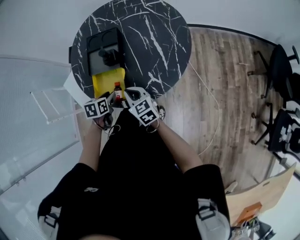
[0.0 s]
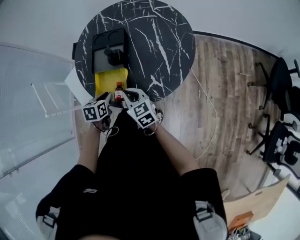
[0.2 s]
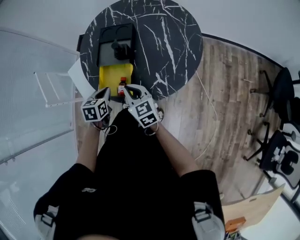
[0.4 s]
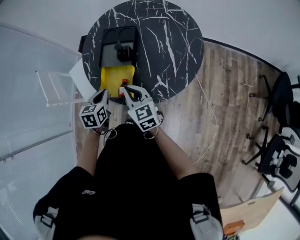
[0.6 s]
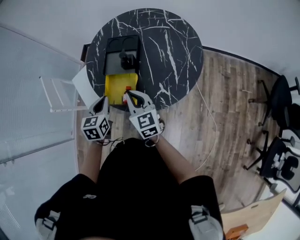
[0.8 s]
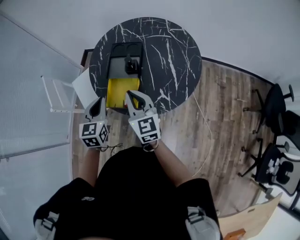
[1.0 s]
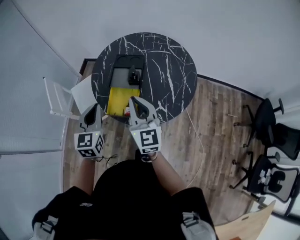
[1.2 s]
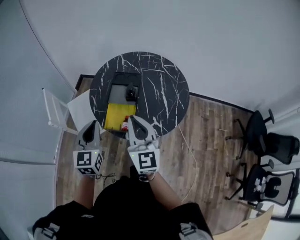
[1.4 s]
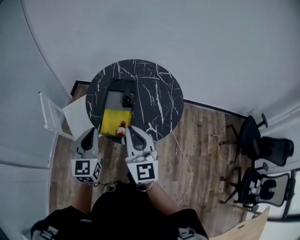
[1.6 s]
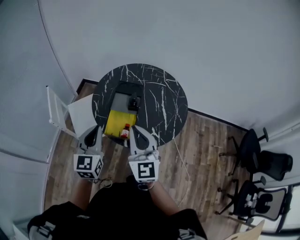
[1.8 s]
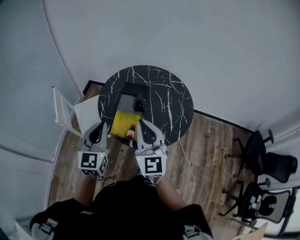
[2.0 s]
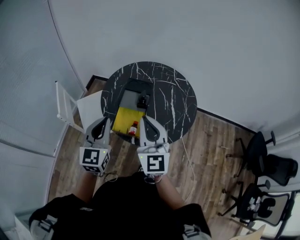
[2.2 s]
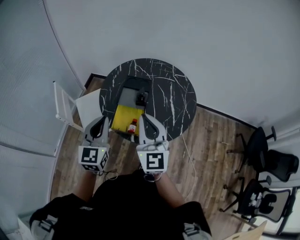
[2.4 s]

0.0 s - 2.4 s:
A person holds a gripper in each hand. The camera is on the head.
0.0 s - 1.2 s: Both grippers travel together upward, some 25 cm. The right gripper swivels about 30 degrees. Meanwhile the left gripper angles its fingers upward, by roughly 40 degrees, and closes.
1.2 s - 2.4 s: Both grippers move upward, roughly 10 cm.

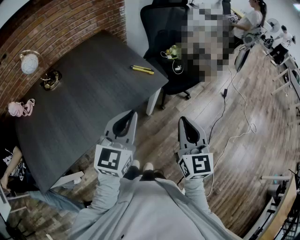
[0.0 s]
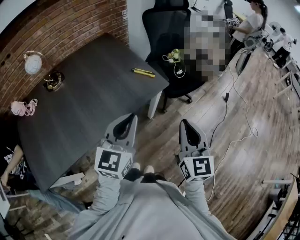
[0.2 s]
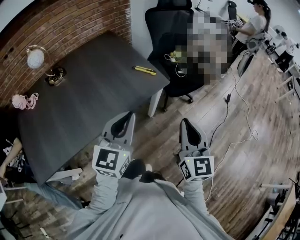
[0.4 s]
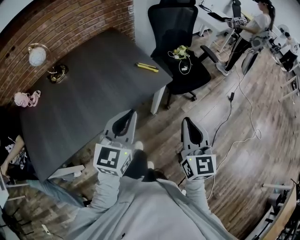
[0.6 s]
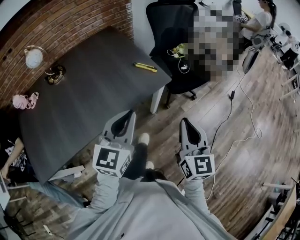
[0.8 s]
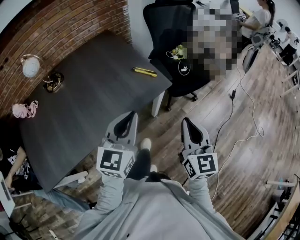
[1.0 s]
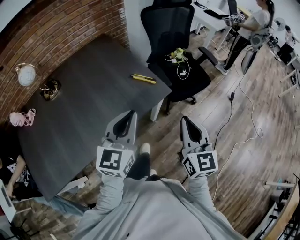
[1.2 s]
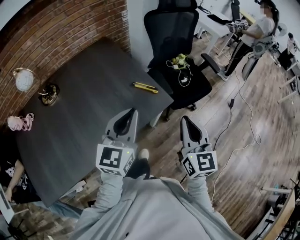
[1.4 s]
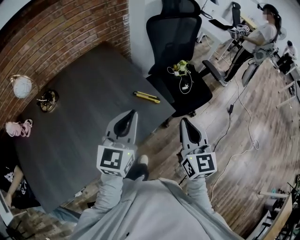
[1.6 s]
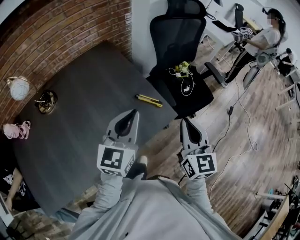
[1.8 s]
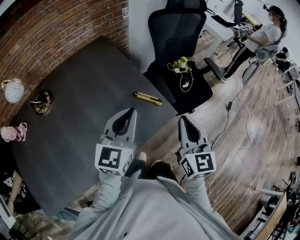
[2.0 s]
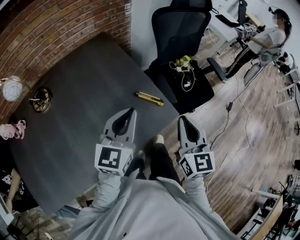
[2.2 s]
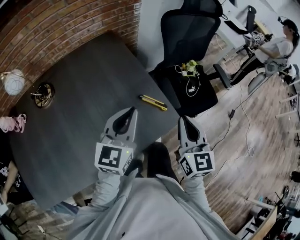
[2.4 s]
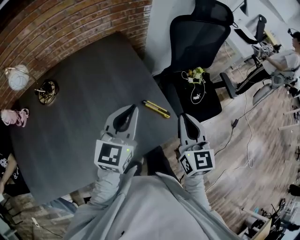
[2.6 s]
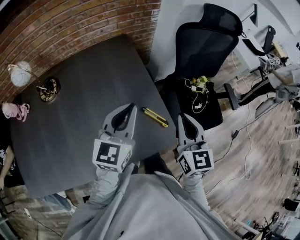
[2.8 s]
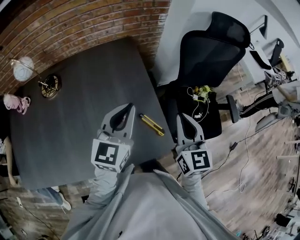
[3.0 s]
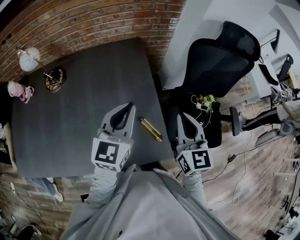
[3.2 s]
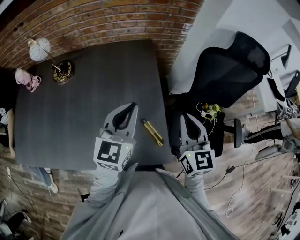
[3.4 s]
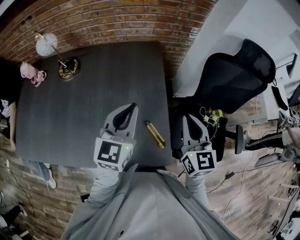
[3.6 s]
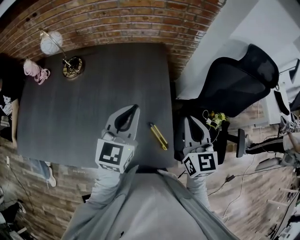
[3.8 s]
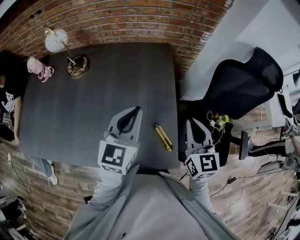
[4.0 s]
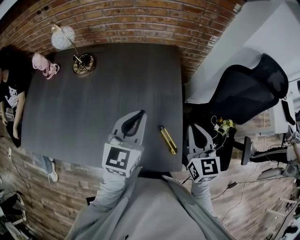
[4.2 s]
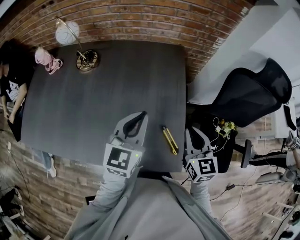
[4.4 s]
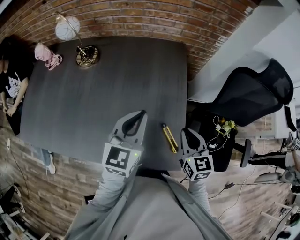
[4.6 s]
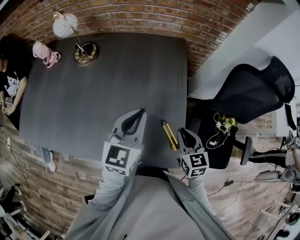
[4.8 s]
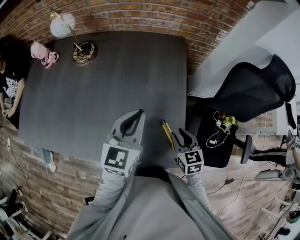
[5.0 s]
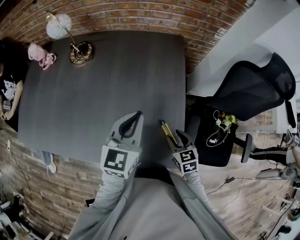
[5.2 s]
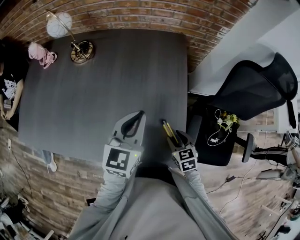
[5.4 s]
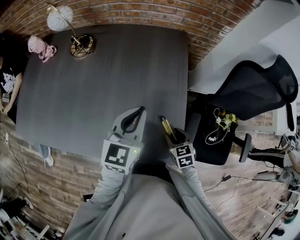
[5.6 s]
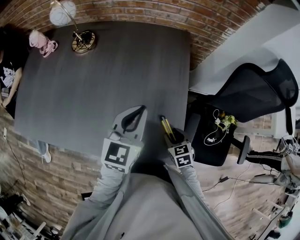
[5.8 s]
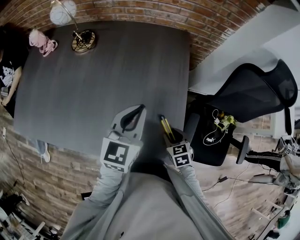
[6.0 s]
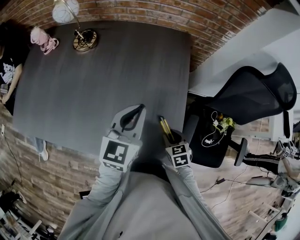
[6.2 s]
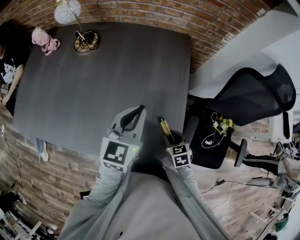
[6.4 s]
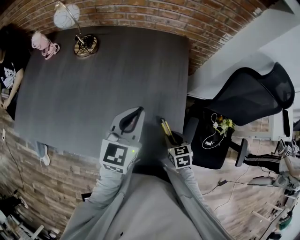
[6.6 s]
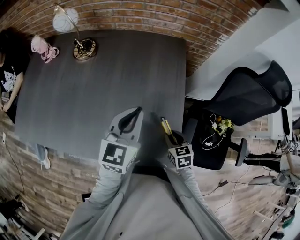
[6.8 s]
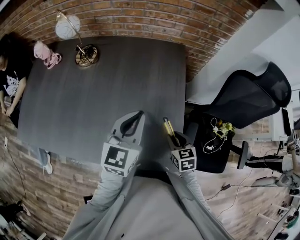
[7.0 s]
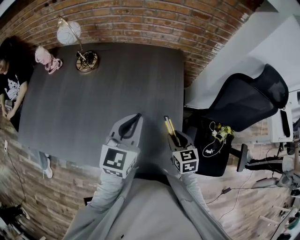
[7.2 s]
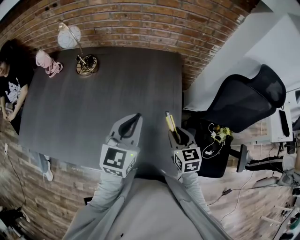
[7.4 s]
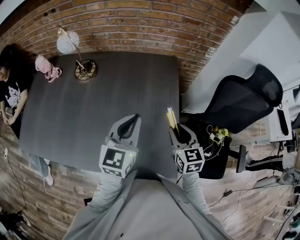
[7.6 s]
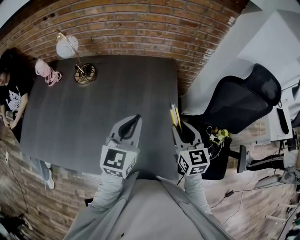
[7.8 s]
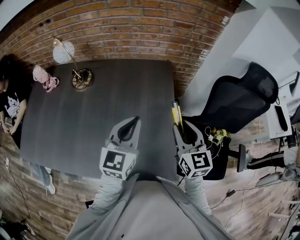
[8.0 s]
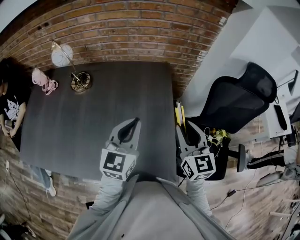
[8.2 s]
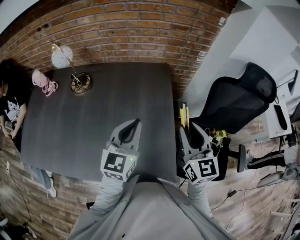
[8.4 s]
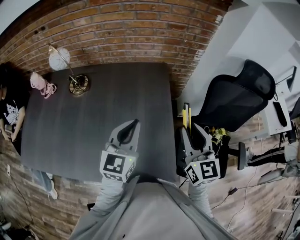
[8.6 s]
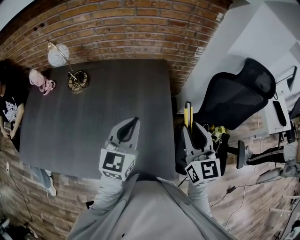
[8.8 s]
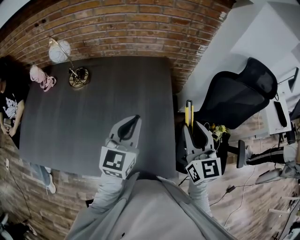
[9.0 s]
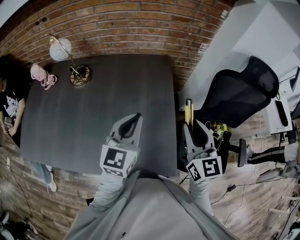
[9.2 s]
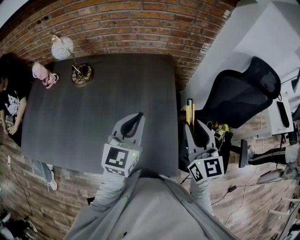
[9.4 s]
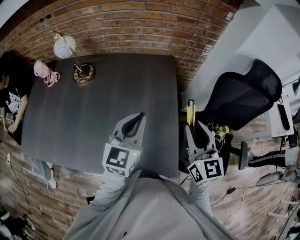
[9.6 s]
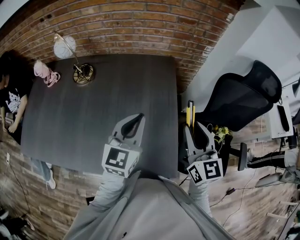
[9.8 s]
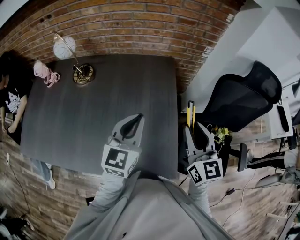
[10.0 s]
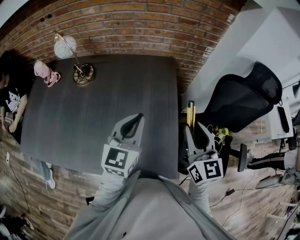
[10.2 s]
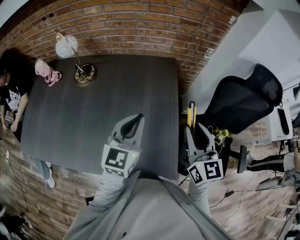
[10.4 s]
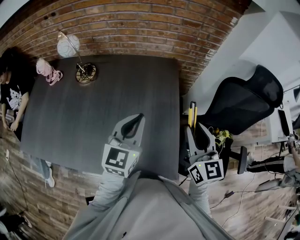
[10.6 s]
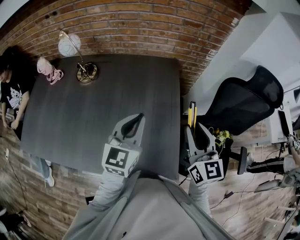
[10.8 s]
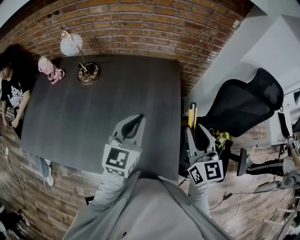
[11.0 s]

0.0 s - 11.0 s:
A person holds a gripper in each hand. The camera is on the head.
0.0 s - 1.6 s: The grippers both shift forward by approximately 20 cm.
1.6 s - 3.2 s: The left gripper shifts by about 20 cm, and changes its angle by roughly 20 degrees. The right gripper ends up approximately 30 cm from where it was, and swivels approximately 30 degrees.
3.2 s - 4.8 s: The right gripper goes roughly 15 cm downward, and swivels some 30 degrees. The left gripper is displaced to the left by approximately 5 cm.
4.8 s - 6.2 s: The right gripper heads downward, covering roughly 15 cm, swivels some 20 degrees, and opens.
6.2 s - 7.8 s: The left gripper moves upward, roughly 5 cm. Meanwhile the right gripper goes roughly 25 cm upward, and points its fingers some 40 degrees further upward.
7.8 s - 9.4 s: The right gripper goes about 10 cm upward.
9.4 s - 11.0 s: There are only small adjustments of the grippers.

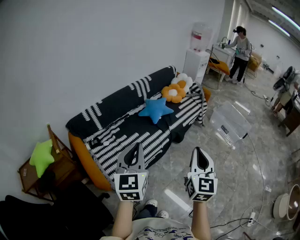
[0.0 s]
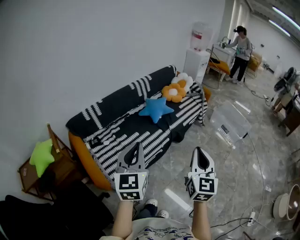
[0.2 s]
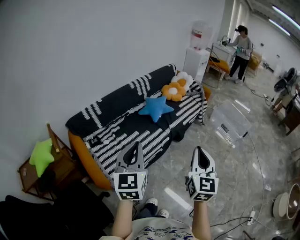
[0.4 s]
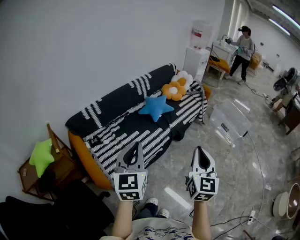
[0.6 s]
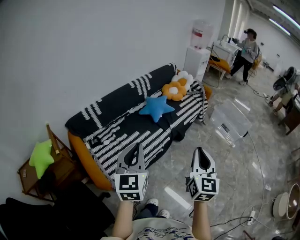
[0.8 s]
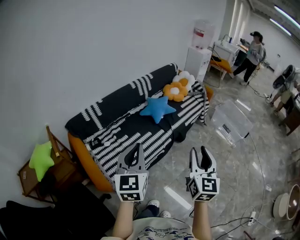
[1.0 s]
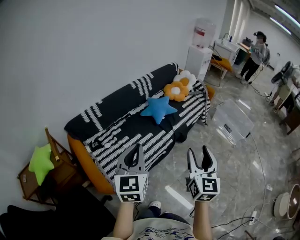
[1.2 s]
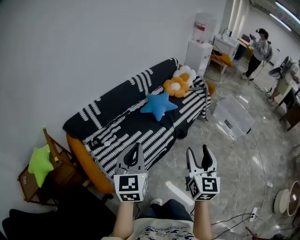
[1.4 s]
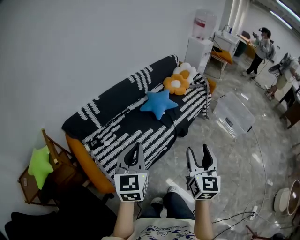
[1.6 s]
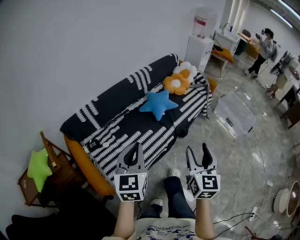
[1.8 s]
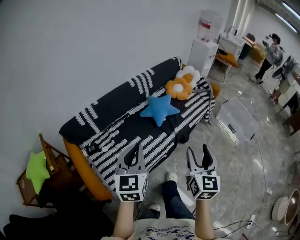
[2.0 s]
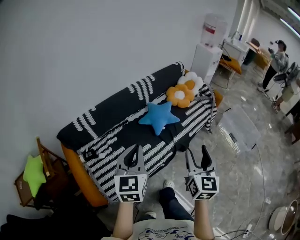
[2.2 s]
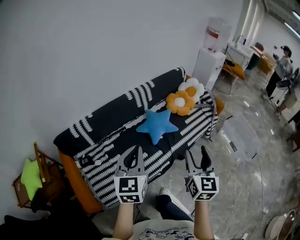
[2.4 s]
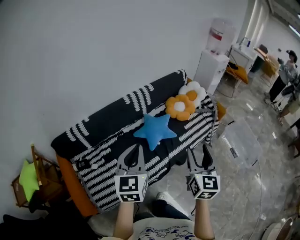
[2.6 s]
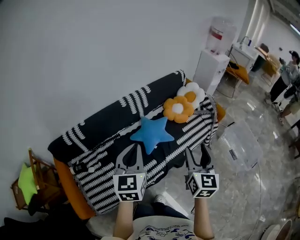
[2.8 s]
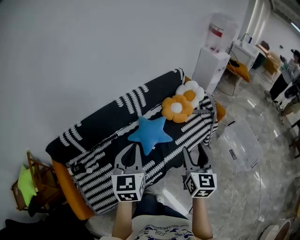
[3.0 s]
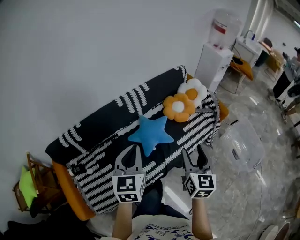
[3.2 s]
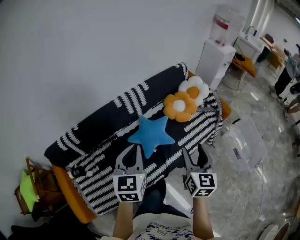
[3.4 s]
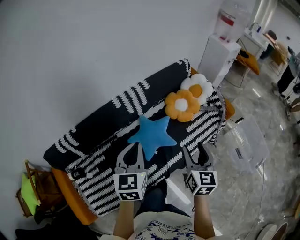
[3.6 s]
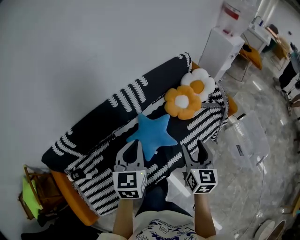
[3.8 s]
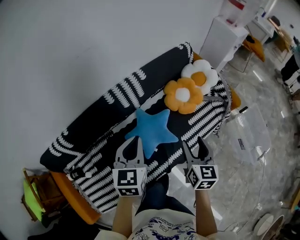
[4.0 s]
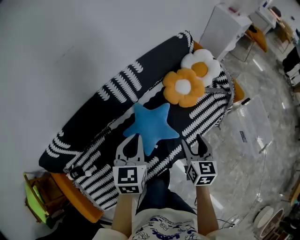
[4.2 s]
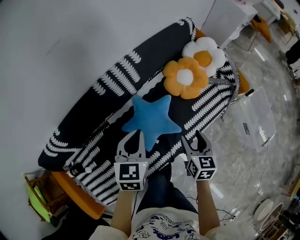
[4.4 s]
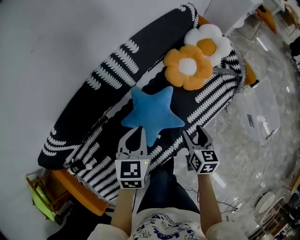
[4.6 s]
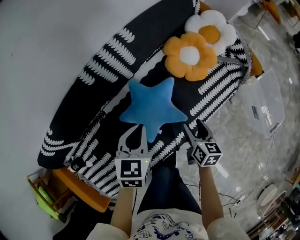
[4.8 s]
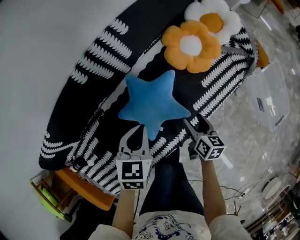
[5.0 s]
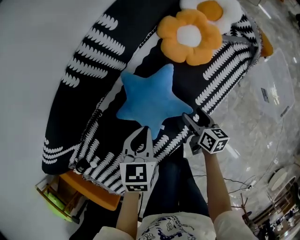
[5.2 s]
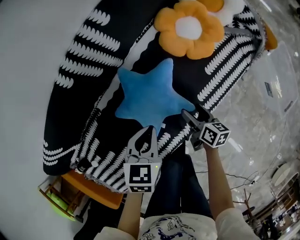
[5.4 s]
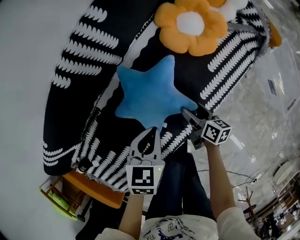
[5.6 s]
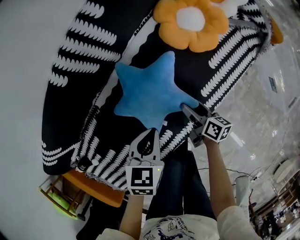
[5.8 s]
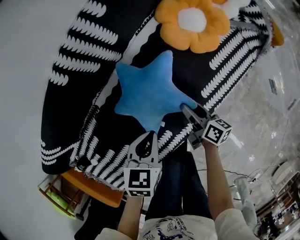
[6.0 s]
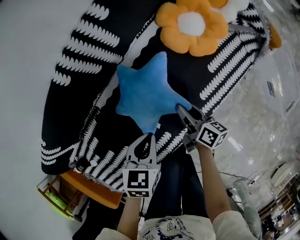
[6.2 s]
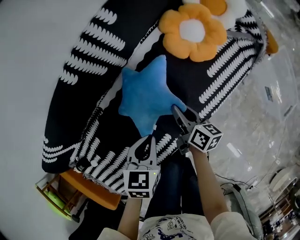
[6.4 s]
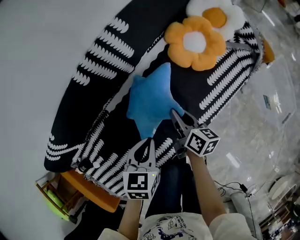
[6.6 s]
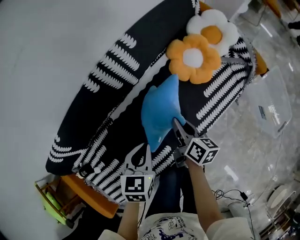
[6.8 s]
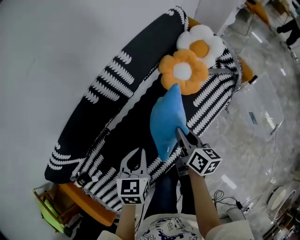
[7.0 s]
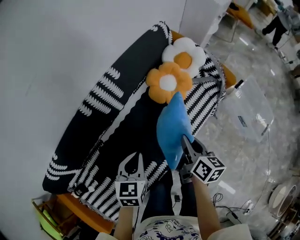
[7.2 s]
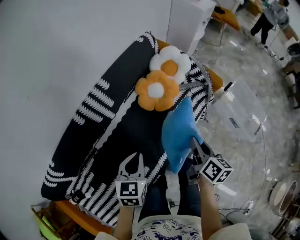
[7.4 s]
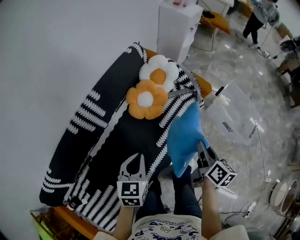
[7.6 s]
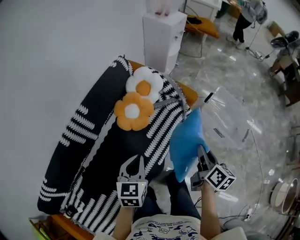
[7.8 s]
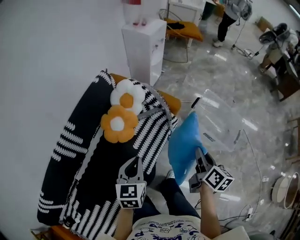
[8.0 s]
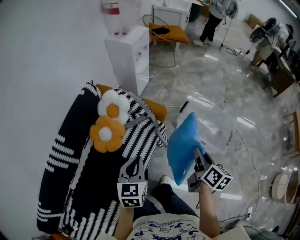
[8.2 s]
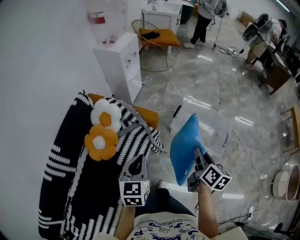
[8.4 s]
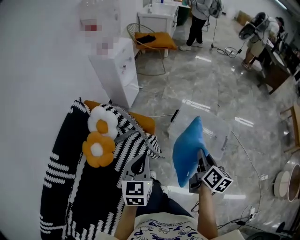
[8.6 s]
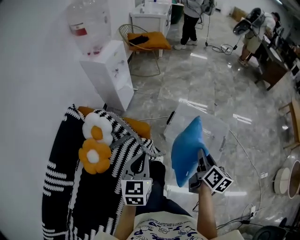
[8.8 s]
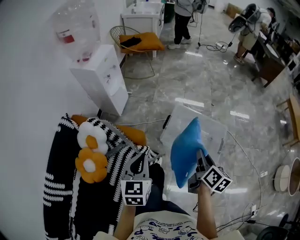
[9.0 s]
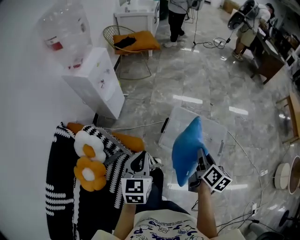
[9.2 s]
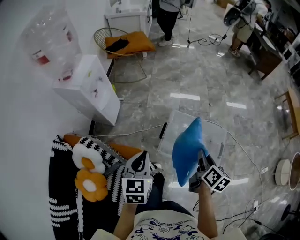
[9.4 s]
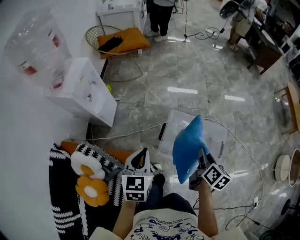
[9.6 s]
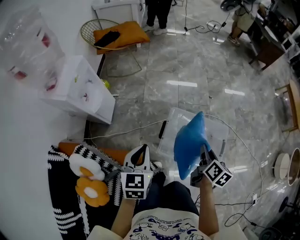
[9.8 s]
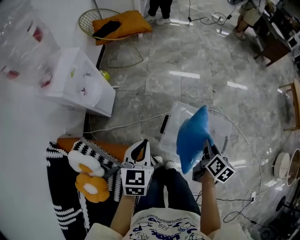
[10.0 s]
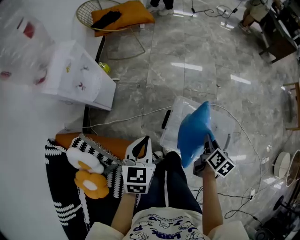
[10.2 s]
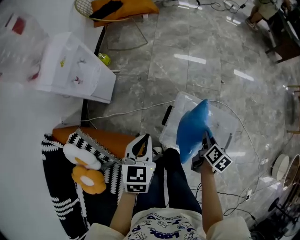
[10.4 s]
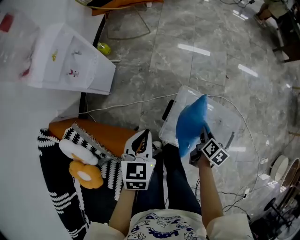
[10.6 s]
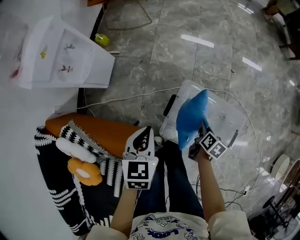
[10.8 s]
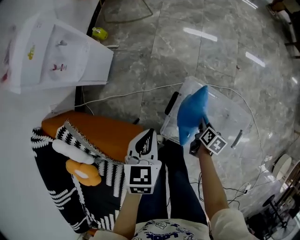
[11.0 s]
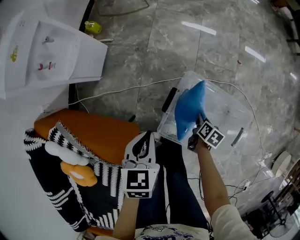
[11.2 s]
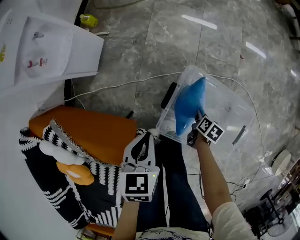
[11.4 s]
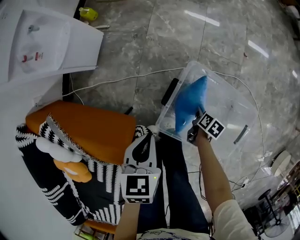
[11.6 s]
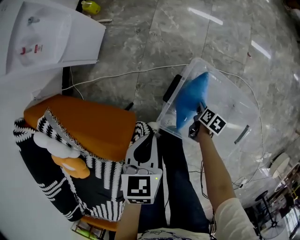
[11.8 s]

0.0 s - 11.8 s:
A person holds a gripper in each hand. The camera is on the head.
0.0 s - 1.4 s: The grippers both shift forward and to the left by some 10 cm. The right gripper opens.
1.4 s - 3.0 s: The two grippers travel together, forward, some 50 cm.
3.0 s - 4.4 s: The right gripper moves downward and forward, about 40 cm, and rotates some 30 degrees, while the left gripper travels forward and downward by approximately 35 cm, and rotates approximately 20 degrees.
4.4 s - 6.0 s: The grippers both shift downward by some 25 cm. The right gripper twists about 40 degrees clockwise, seen from behind. Meanwhile the left gripper turns by some 30 degrees.
6.0 s - 7.4 s: The left gripper goes roughly 25 cm upward, and swivels roughly 20 degrees. Meanwhile the right gripper heads upward and to the right, covering approximately 40 cm, turns by some 30 degrees, and closes up.
7.4 s - 8.8 s: The pair of grippers is taken about 60 cm. The left gripper turns by about 30 degrees; the right gripper changes its angle by about 30 degrees.
8.8 s - 10.4 s: Both grippers are carried forward, approximately 40 cm. The right gripper travels downward by about 25 cm, and turns by roughly 30 degrees.
10.4 s - 11.8 s: The left gripper is displaced downward by about 25 cm, and rotates about 20 degrees. Meanwhile the right gripper moves downward, roughly 40 cm, and rotates approximately 30 degrees.
